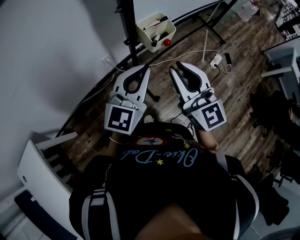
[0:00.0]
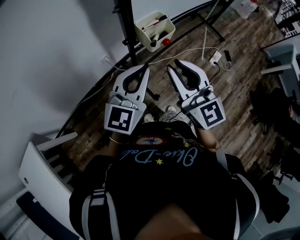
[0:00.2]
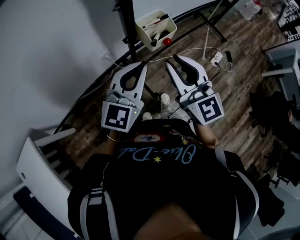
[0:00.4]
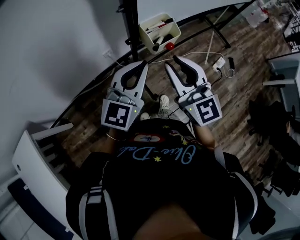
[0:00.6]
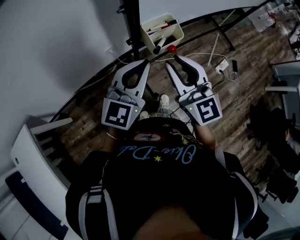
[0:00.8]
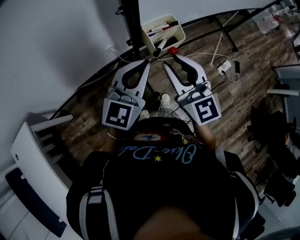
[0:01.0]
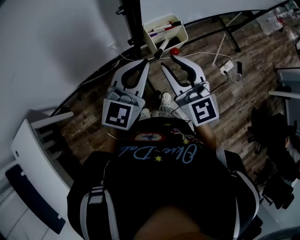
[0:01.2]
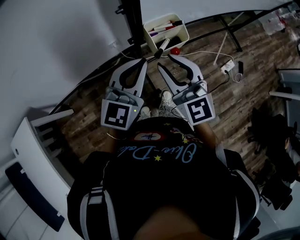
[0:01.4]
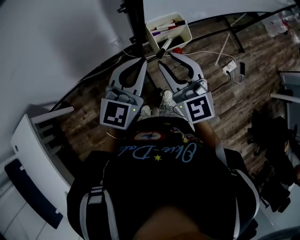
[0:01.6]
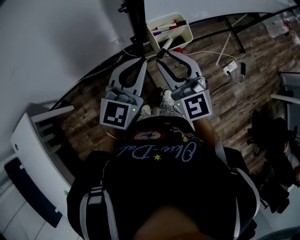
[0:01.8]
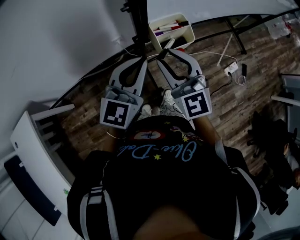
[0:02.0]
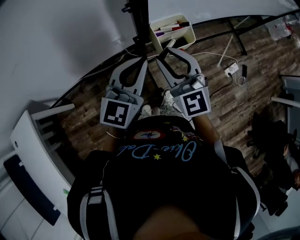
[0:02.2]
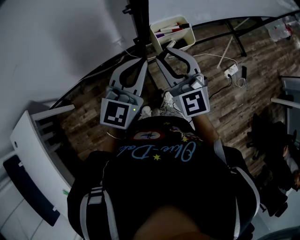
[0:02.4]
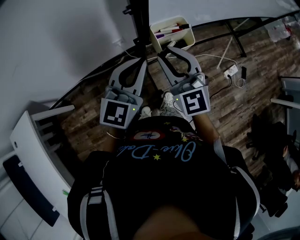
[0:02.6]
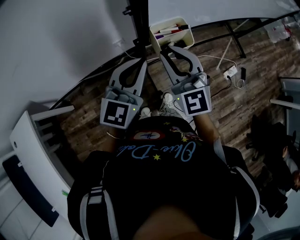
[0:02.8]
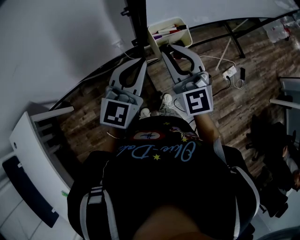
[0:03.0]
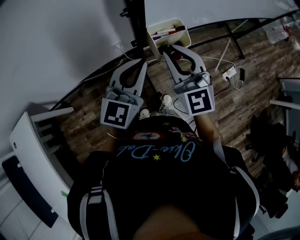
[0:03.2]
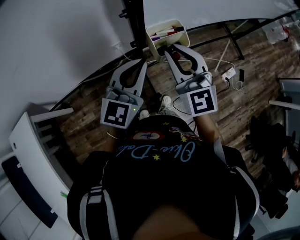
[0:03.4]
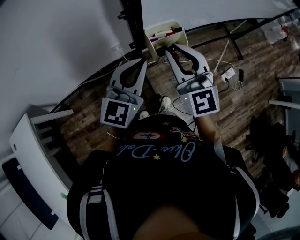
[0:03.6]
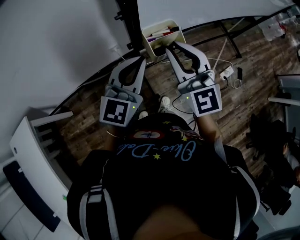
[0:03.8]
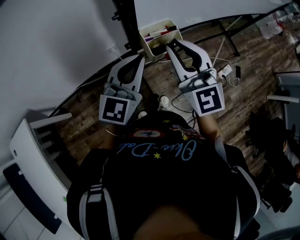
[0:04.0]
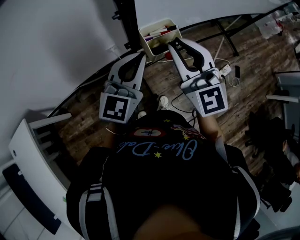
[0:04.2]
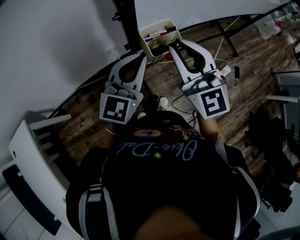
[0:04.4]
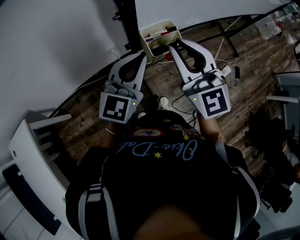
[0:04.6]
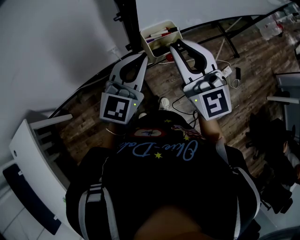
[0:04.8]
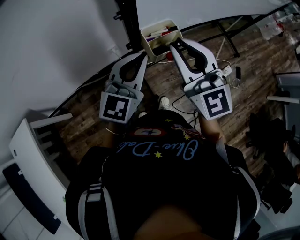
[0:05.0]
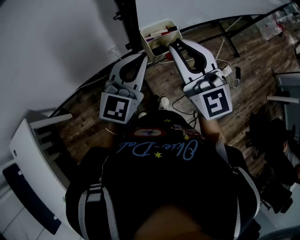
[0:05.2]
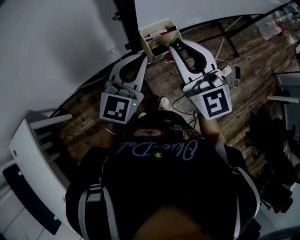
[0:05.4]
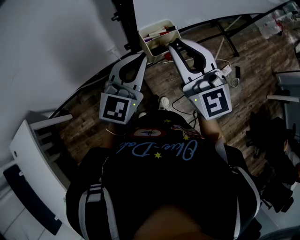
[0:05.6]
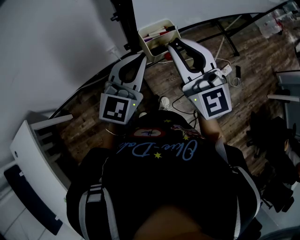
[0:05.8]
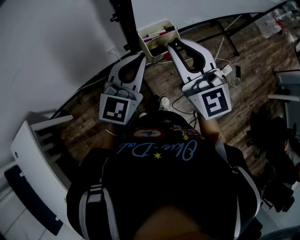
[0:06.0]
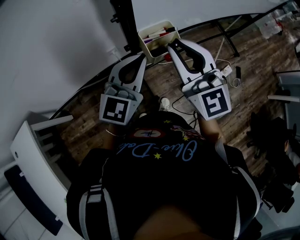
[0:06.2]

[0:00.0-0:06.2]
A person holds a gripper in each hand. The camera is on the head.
0:00.0 to 0:01.6: The left gripper is displaced forward by some 5 cm; the right gripper travels forward and downward by about 10 cm.
0:01.6 to 0:03.2: There are only small adjustments of the grippers.
0:03.2 to 0:04.6: The right gripper moves upward, roughly 5 cm.
0:04.6 to 0:06.2: Neither gripper changes place.

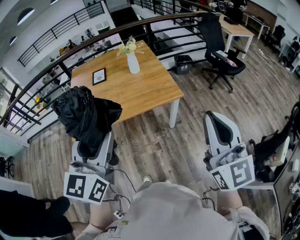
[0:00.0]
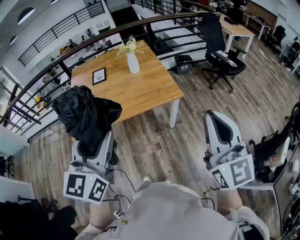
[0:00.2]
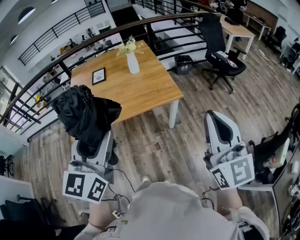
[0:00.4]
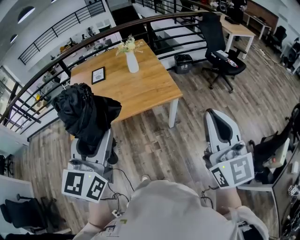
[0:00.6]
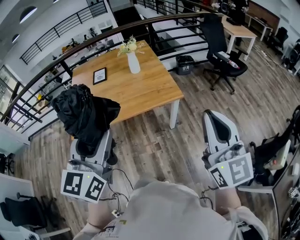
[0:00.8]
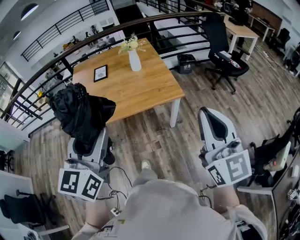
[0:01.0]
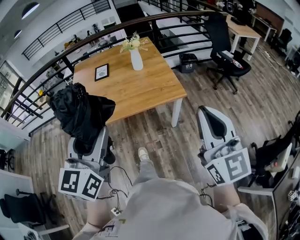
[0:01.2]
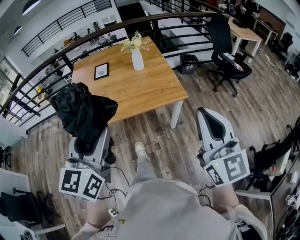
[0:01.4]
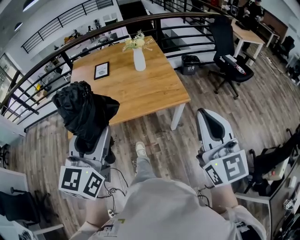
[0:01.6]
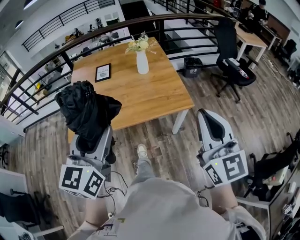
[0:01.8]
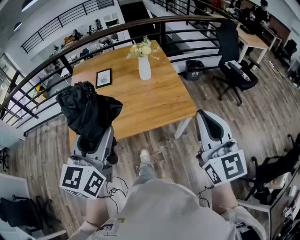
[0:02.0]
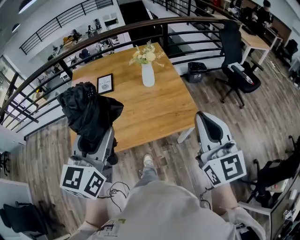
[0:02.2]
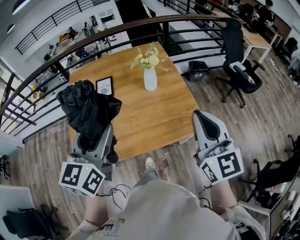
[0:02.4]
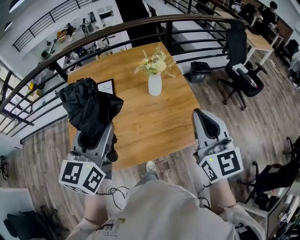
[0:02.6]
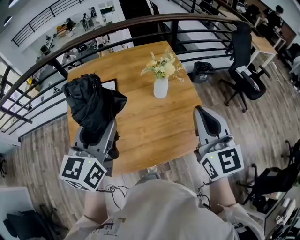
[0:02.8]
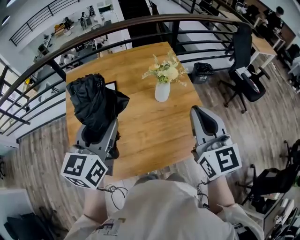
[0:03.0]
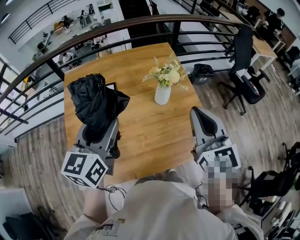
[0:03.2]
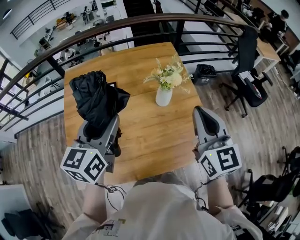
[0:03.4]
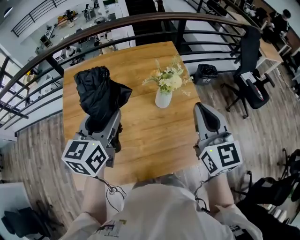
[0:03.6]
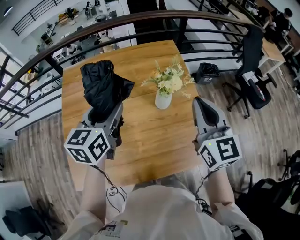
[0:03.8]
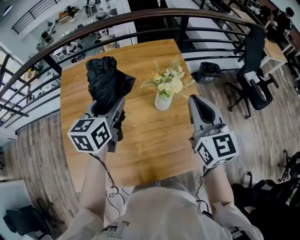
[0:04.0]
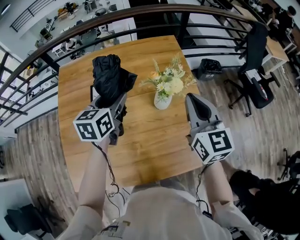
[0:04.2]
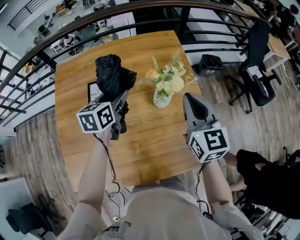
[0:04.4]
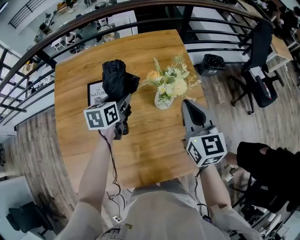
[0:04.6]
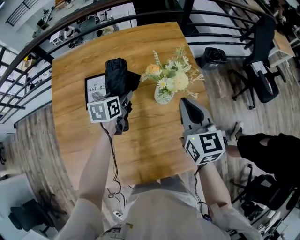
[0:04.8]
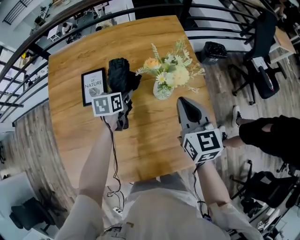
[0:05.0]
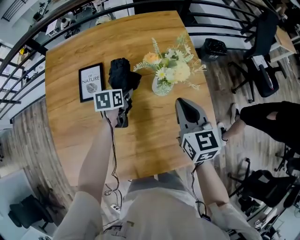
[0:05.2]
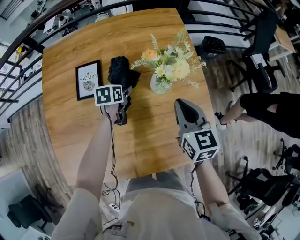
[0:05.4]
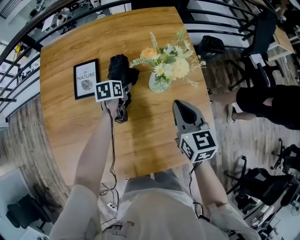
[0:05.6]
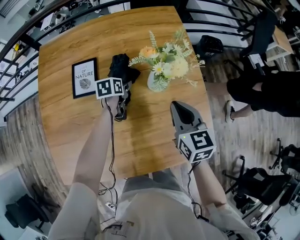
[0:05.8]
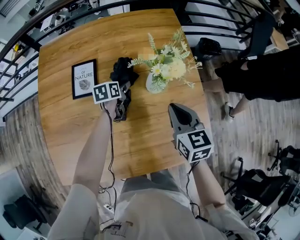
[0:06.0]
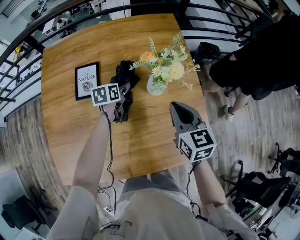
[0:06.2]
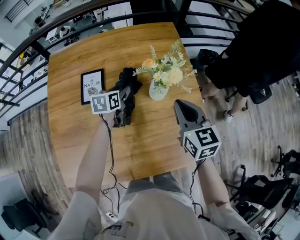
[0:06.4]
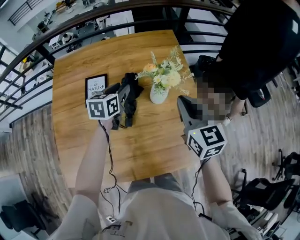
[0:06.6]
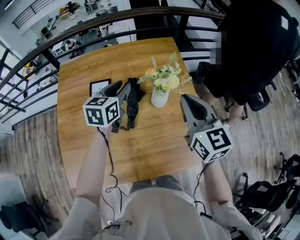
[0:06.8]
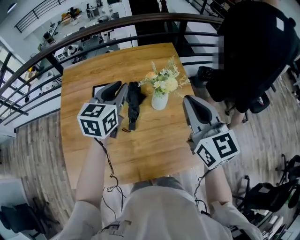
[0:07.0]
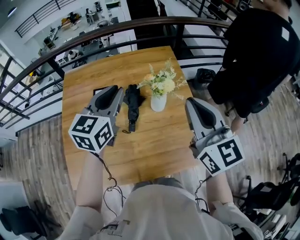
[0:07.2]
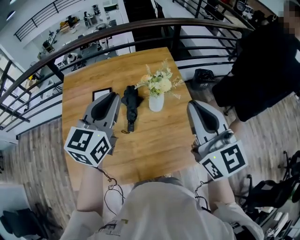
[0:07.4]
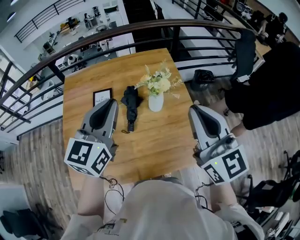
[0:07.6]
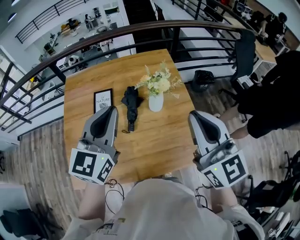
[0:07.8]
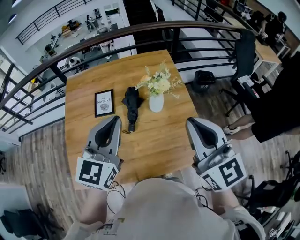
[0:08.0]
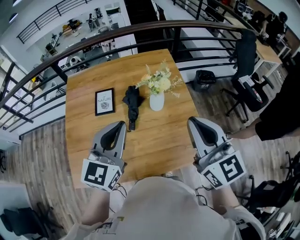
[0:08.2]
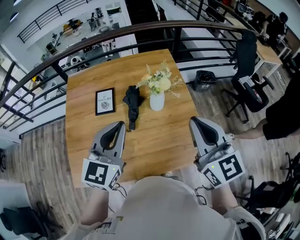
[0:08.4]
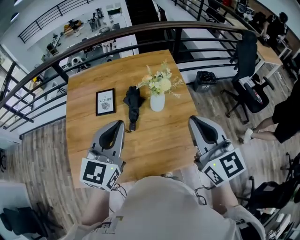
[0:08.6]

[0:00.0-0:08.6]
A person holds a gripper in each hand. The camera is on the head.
0:00.0 to 0:01.4: The right gripper is displaced forward by about 5 cm.
0:01.4 to 0:02.8: The two grippers travel together, forward, some 50 cm.
0:02.8 to 0:04.4: The grippers both shift forward and downward by some 30 cm. The left gripper rotates about 30 degrees.
0:04.4 to 0:05.8: The right gripper goes about 15 cm downward, while the left gripper shifts roughly 25 cm downward, and changes its angle by some 30 degrees.
0:05.8 to 0:07.2: The two grippers go roughly 35 cm upward. The left gripper tilts its fingers approximately 40 degrees upward, and closes its fingers. The right gripper changes its angle by about 30 degrees.
0:07.2 to 0:08.6: The left gripper is displaced backward by approximately 15 cm. Meanwhile the right gripper is displaced backward by some 5 cm.

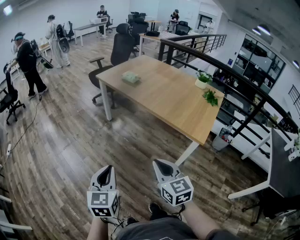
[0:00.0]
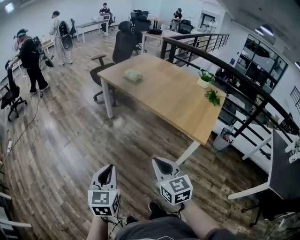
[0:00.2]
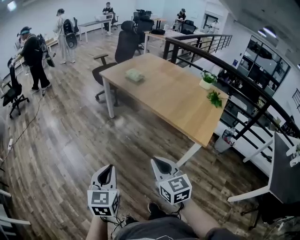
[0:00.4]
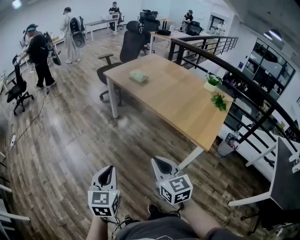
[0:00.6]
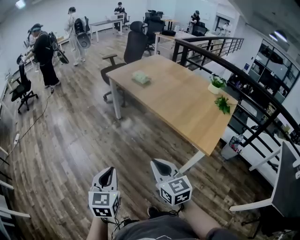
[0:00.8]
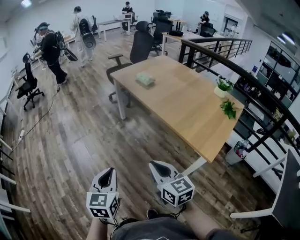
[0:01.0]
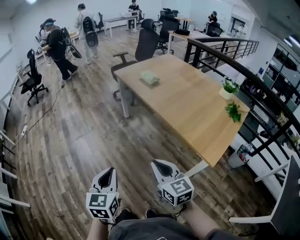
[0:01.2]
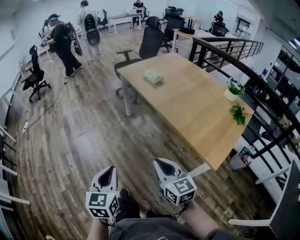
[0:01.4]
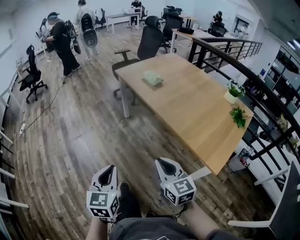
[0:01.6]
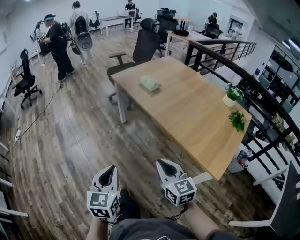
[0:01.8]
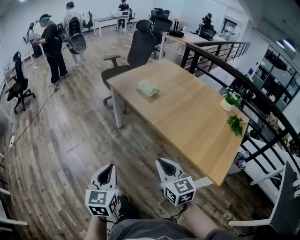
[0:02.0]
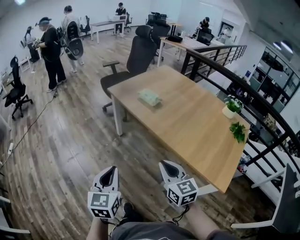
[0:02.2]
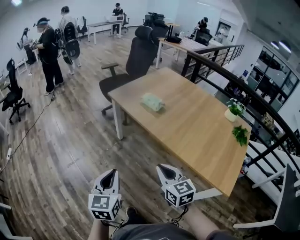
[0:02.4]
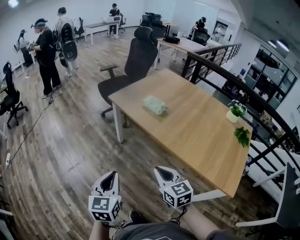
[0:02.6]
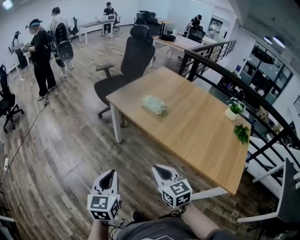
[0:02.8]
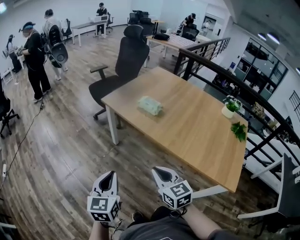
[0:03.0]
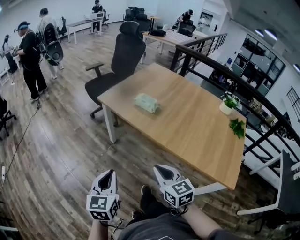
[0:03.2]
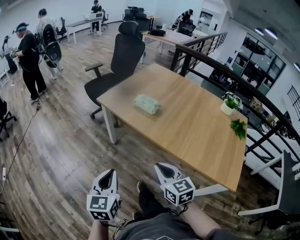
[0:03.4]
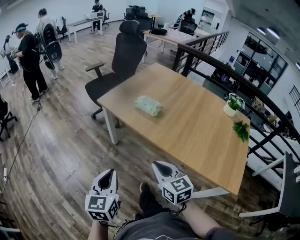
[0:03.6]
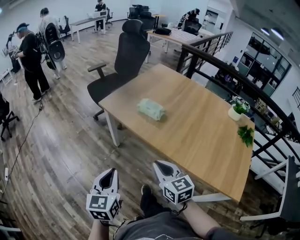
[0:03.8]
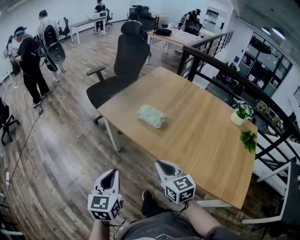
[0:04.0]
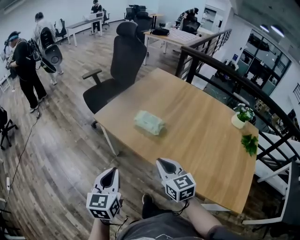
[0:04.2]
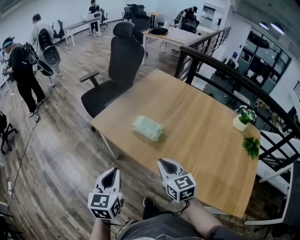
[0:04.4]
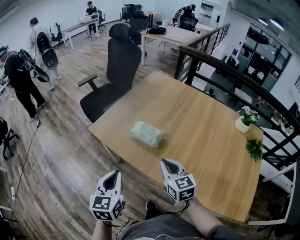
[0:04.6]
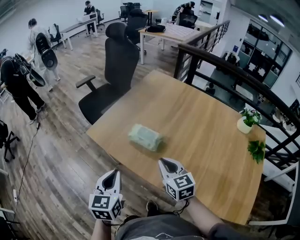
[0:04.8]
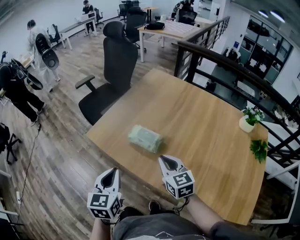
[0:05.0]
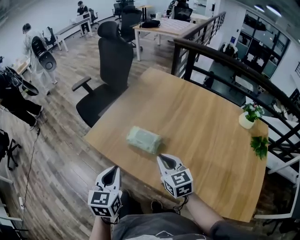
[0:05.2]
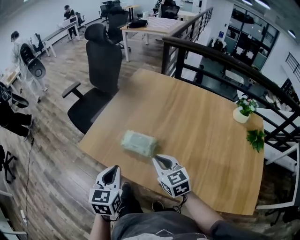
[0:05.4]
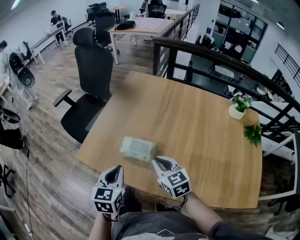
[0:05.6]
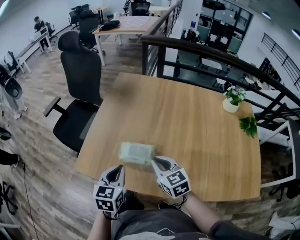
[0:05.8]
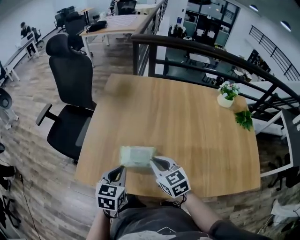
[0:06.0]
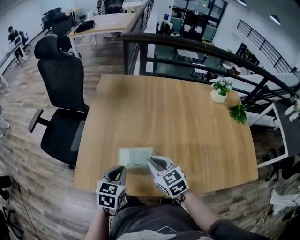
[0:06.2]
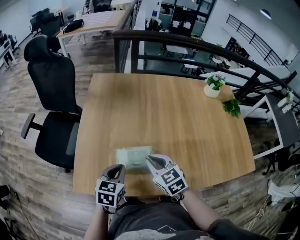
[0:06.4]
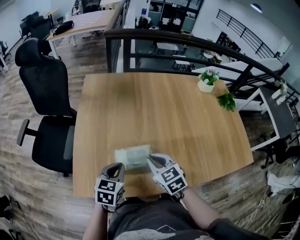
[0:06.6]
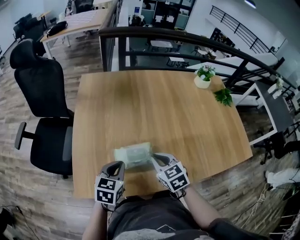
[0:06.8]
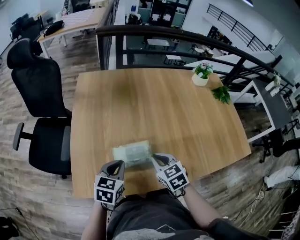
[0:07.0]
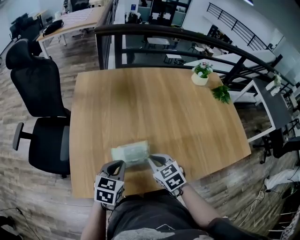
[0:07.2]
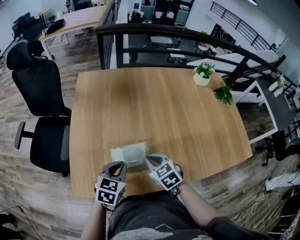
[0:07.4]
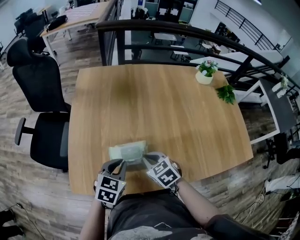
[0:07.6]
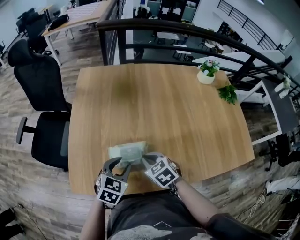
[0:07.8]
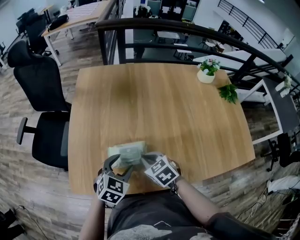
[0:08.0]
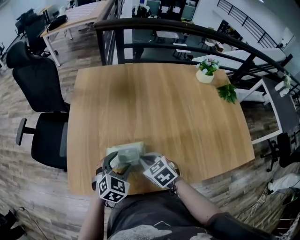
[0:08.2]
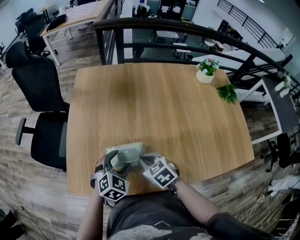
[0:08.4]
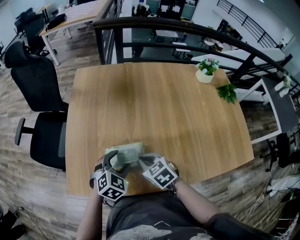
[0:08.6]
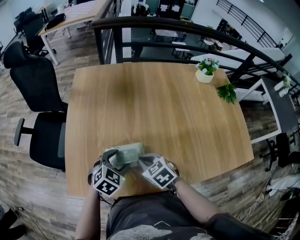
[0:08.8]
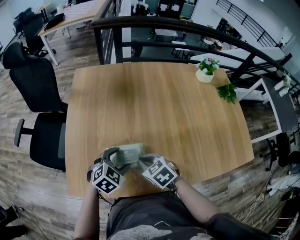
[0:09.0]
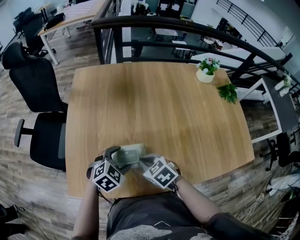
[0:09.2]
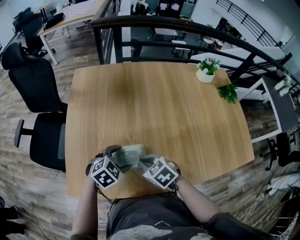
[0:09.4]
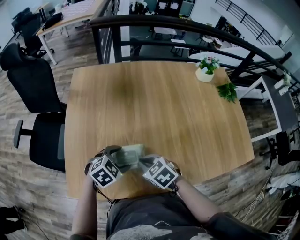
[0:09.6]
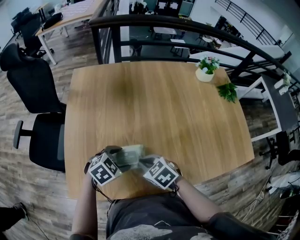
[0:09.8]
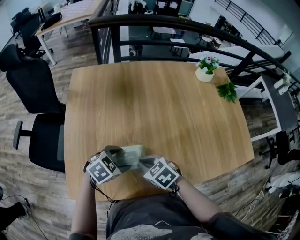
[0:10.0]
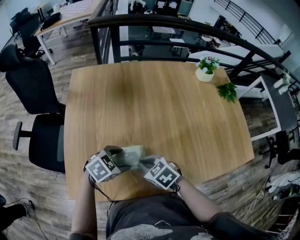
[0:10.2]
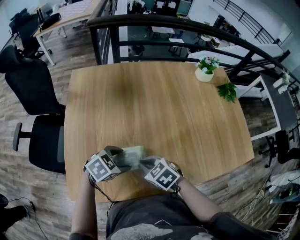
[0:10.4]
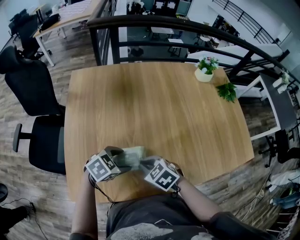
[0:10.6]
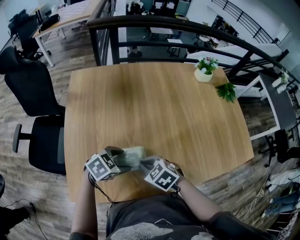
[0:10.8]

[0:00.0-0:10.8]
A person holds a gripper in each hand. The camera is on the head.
0:00.0 to 0:01.6: The two grippers go about 15 cm forward and to the right.
0:01.6 to 0:03.0: The right gripper goes roughly 30 cm forward and to the left; the left gripper travels forward by roughly 30 cm.
0:03.0 to 0:04.6: The two grippers go roughly 30 cm forward.
0:04.6 to 0:06.2: The right gripper shifts by about 20 cm. The left gripper moves about 25 cm, and swivels approximately 50 degrees.
0:06.2 to 0:07.8: The left gripper ends up approximately 5 cm from where it was, changes its angle by about 20 degrees, and opens. Meanwhile the right gripper goes roughly 5 cm downward.
0:07.8 to 0:09.2: The left gripper moves approximately 5 cm, rotates roughly 30 degrees, and opens.
0:09.2 to 0:10.8: The left gripper rotates some 20 degrees.
